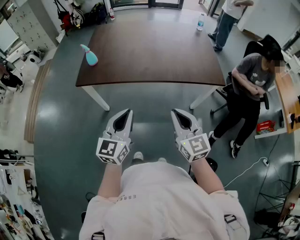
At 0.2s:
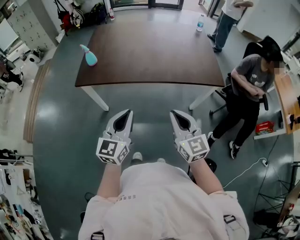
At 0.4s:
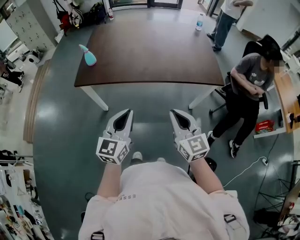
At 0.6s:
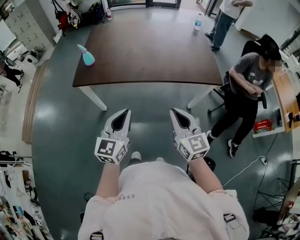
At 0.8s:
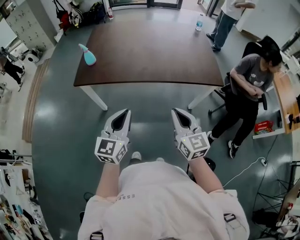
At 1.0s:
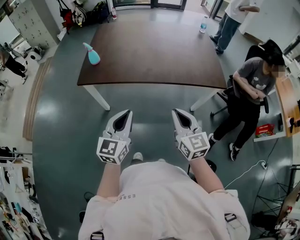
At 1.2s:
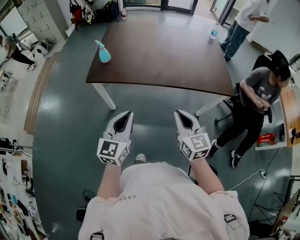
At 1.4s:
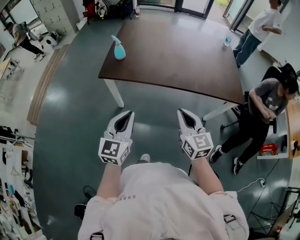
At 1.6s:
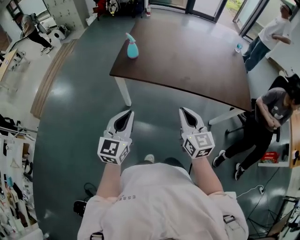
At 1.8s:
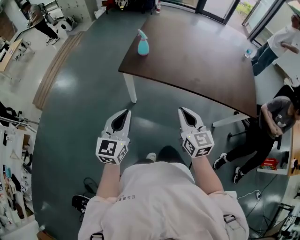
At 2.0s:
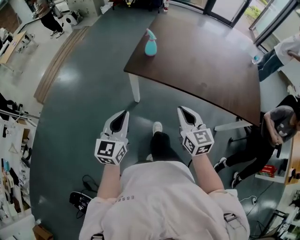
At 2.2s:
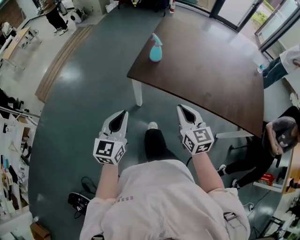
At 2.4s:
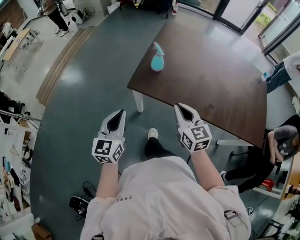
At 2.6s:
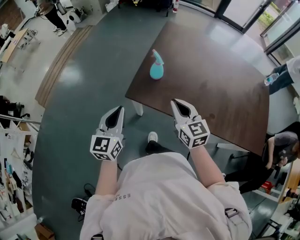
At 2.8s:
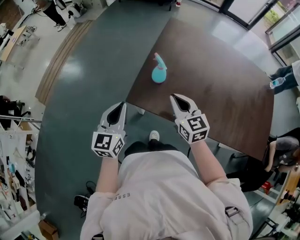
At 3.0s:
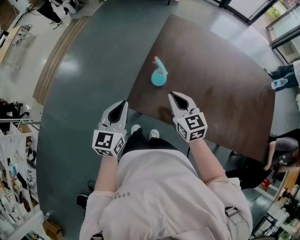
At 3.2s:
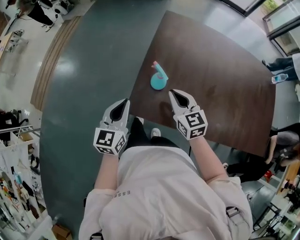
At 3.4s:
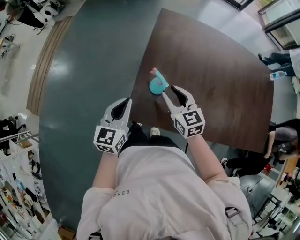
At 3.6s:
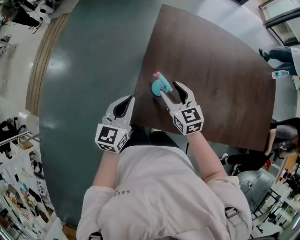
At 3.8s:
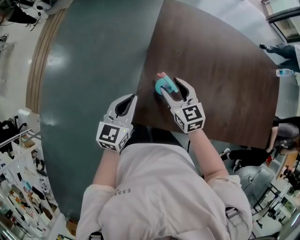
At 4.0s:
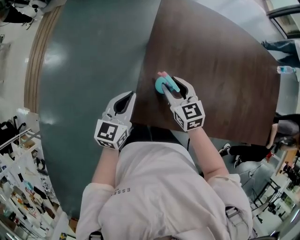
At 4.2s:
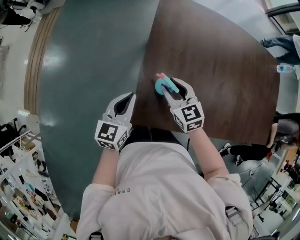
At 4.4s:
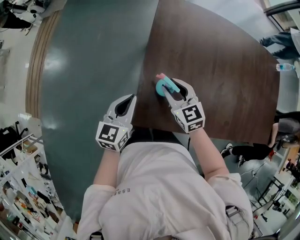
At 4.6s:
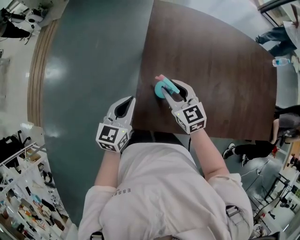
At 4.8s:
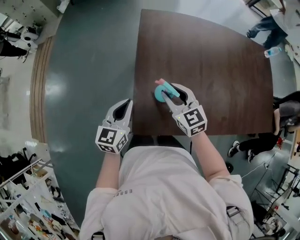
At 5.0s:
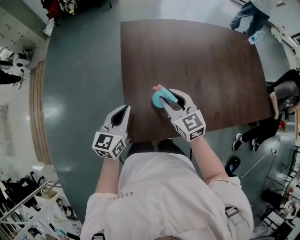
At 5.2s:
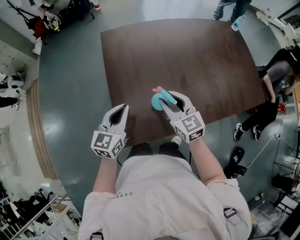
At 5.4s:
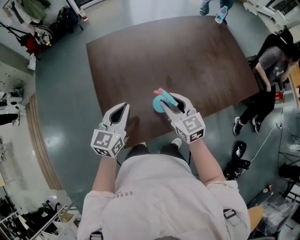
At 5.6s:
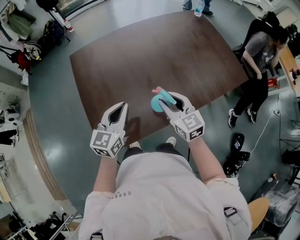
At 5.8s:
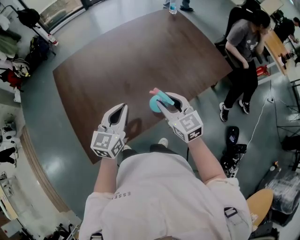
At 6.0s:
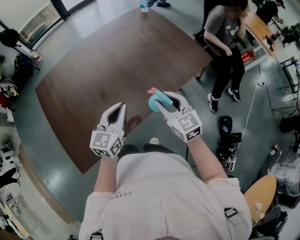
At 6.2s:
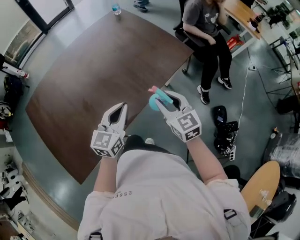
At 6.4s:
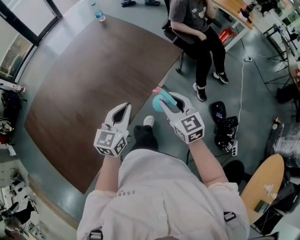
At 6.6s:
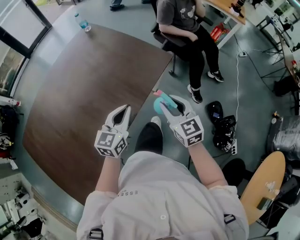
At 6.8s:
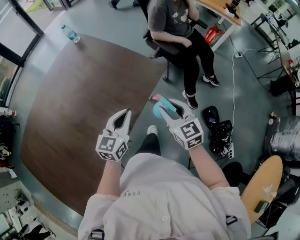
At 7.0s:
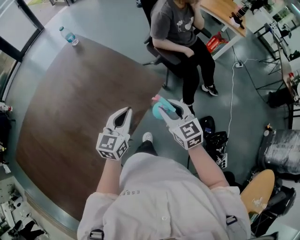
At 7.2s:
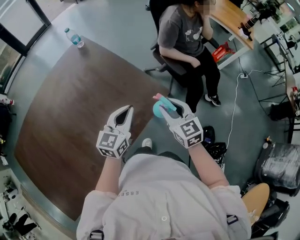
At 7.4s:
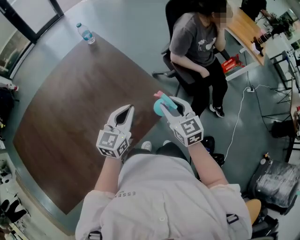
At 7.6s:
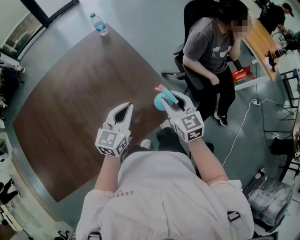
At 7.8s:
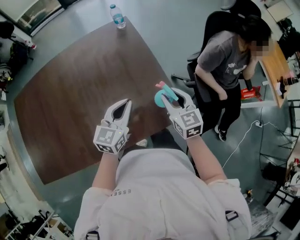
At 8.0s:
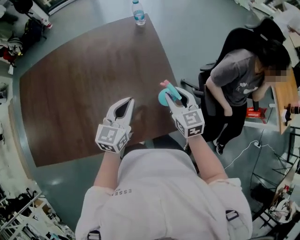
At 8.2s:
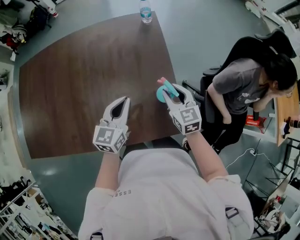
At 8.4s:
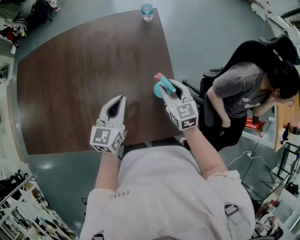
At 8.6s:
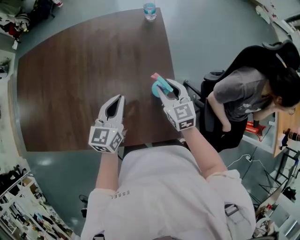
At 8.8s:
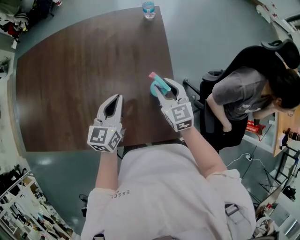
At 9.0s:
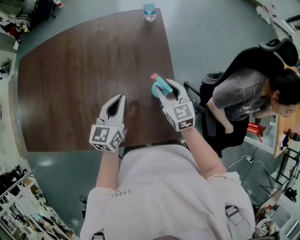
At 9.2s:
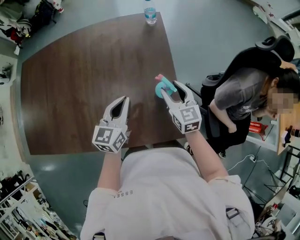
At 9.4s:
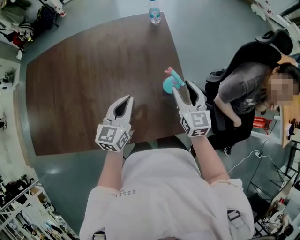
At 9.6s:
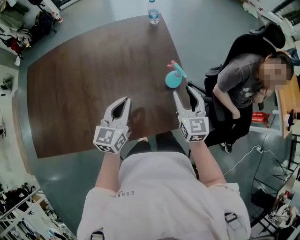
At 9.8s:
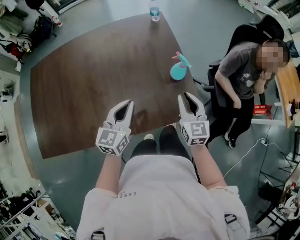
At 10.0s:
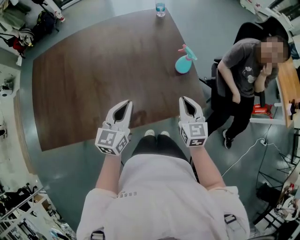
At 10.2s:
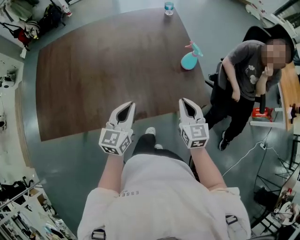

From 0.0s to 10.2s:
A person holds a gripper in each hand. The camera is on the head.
From 0.0s to 1.4s: The left gripper goes some 10 cm to the left, while the right gripper goes approximately 10 cm to the left and forward.
From 1.4s to 3.0s: Both grippers move forward and to the left, about 40 cm. The right gripper rotates roughly 20 degrees.
From 3.0s to 4.4s: Both grippers move forward and downward, approximately 15 cm. The left gripper changes its angle by some 20 degrees; the right gripper opens.
From 4.4s to 5.8s: The right gripper ends up approximately 40 cm from where it was, and changes its angle by about 40 degrees. The left gripper ends up some 35 cm from where it was, and swivels about 40 degrees.
From 5.8s to 7.2s: The pair of grippers is taken approximately 50 cm. The left gripper rotates roughly 20 degrees, while the right gripper changes its angle by about 20 degrees.
From 7.2s to 8.8s: The right gripper ends up some 30 cm from where it was, and changes its angle by roughly 40 degrees. The left gripper moves roughly 15 cm, and rotates roughly 50 degrees.
From 8.8s to 10.2s: The left gripper travels backward and to the left by some 25 cm, while the right gripper shifts roughly 25 cm backward, and closes its fingers.

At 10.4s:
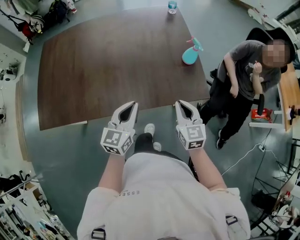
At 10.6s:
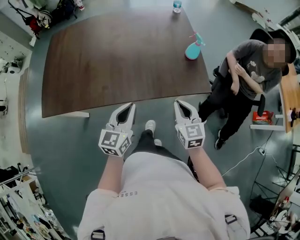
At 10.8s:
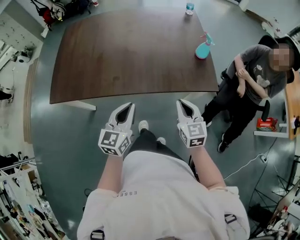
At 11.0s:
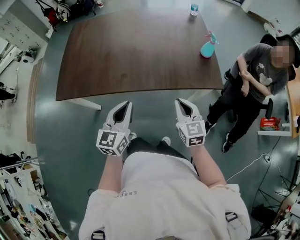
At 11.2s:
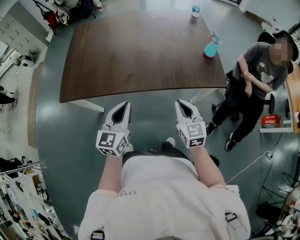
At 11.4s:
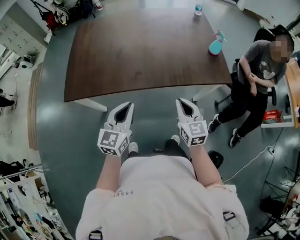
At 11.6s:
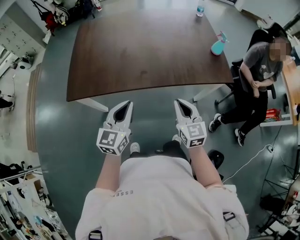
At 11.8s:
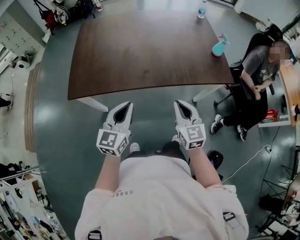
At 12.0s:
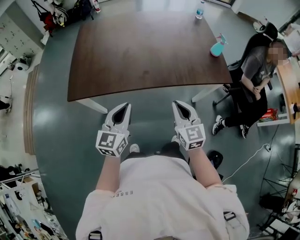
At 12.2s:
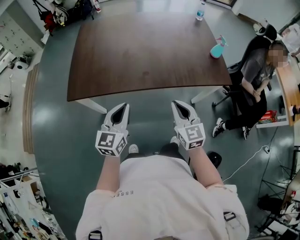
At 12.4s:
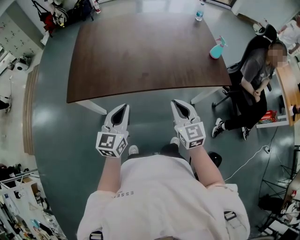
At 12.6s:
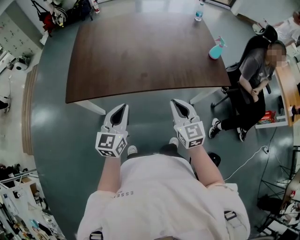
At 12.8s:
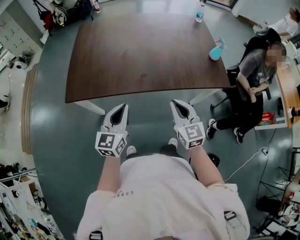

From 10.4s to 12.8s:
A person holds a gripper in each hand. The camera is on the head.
From 10.4s to 11.6s: The two grippers go approximately 25 cm to the left and backward.
From 11.6s to 12.8s: The grippers move only a little.

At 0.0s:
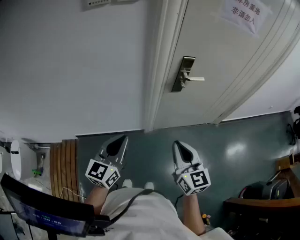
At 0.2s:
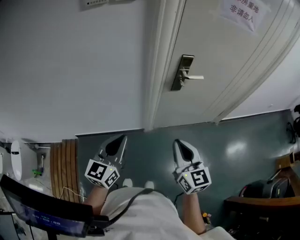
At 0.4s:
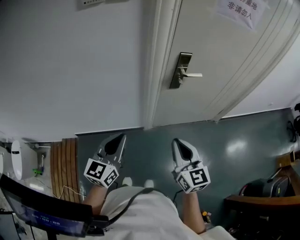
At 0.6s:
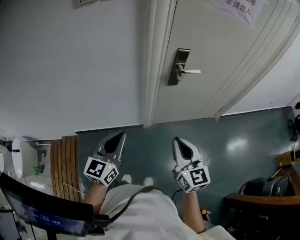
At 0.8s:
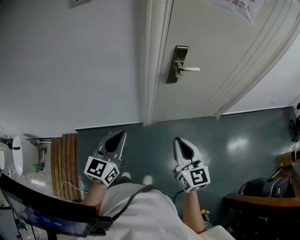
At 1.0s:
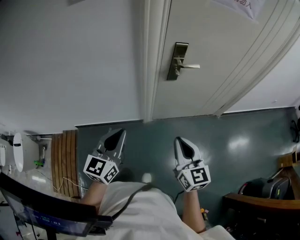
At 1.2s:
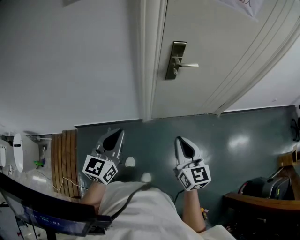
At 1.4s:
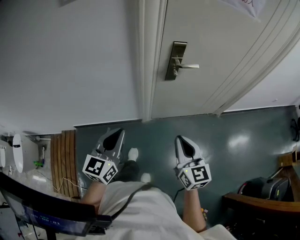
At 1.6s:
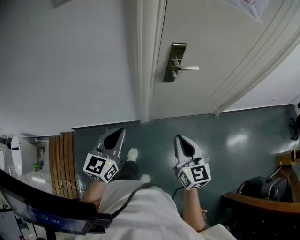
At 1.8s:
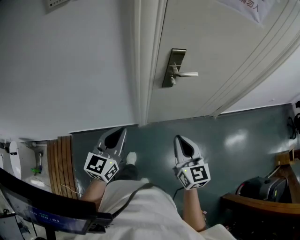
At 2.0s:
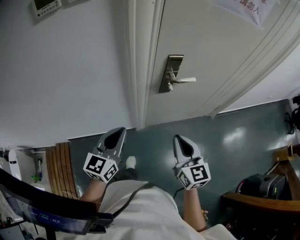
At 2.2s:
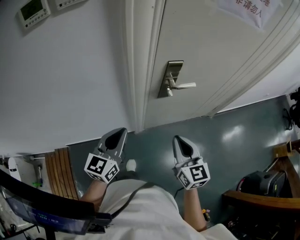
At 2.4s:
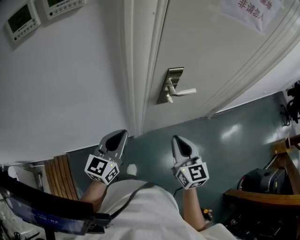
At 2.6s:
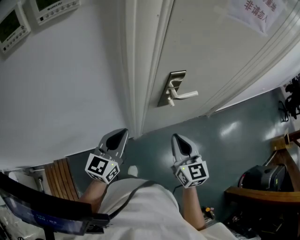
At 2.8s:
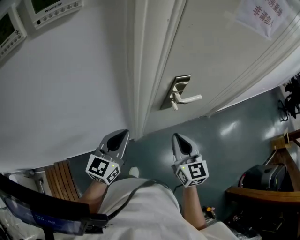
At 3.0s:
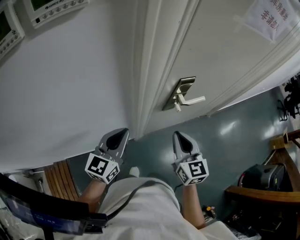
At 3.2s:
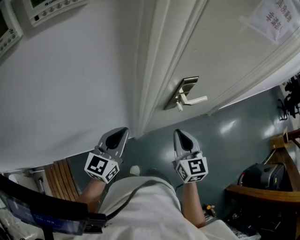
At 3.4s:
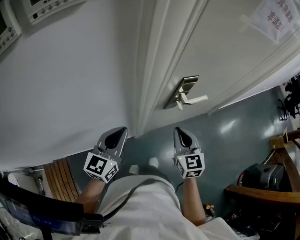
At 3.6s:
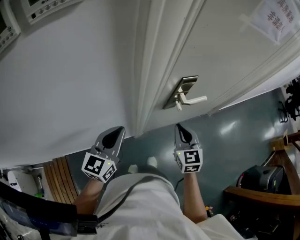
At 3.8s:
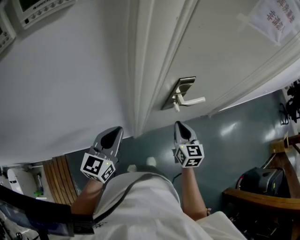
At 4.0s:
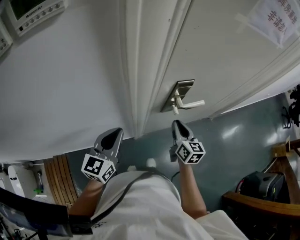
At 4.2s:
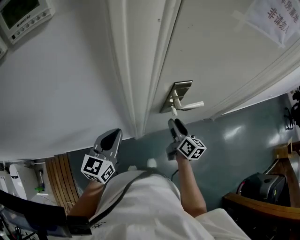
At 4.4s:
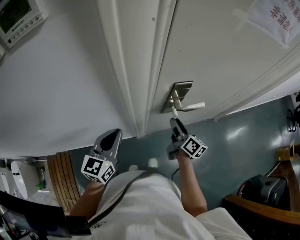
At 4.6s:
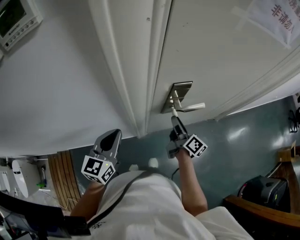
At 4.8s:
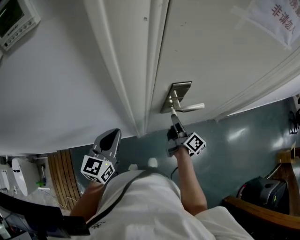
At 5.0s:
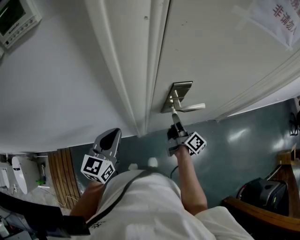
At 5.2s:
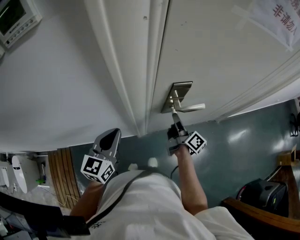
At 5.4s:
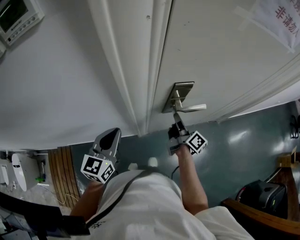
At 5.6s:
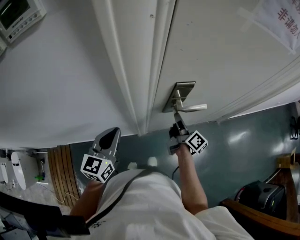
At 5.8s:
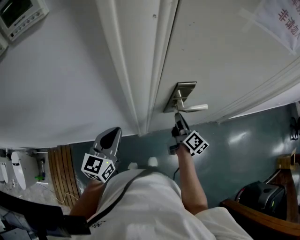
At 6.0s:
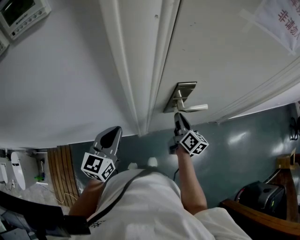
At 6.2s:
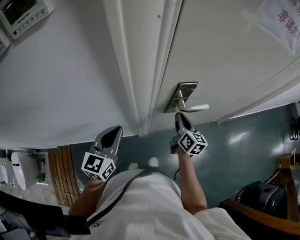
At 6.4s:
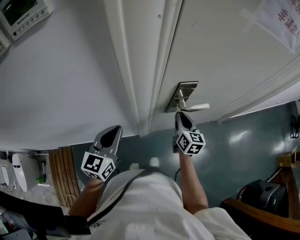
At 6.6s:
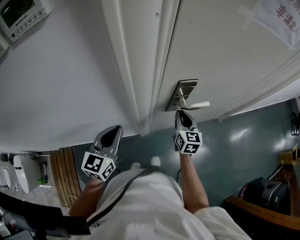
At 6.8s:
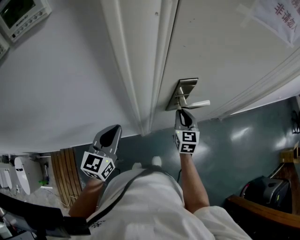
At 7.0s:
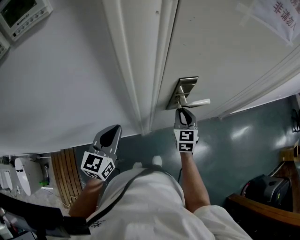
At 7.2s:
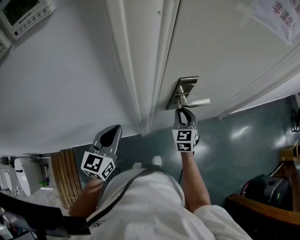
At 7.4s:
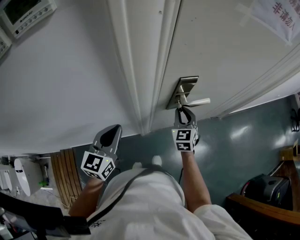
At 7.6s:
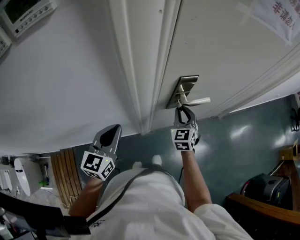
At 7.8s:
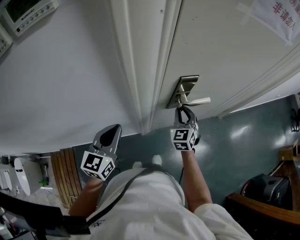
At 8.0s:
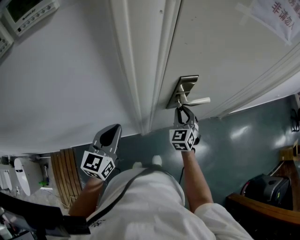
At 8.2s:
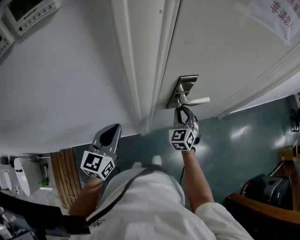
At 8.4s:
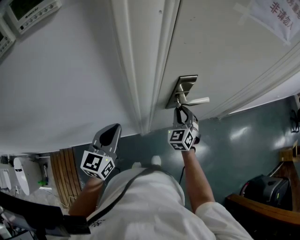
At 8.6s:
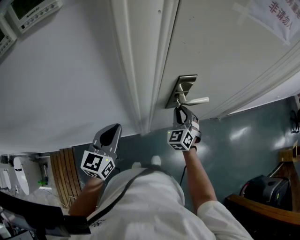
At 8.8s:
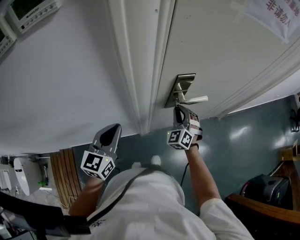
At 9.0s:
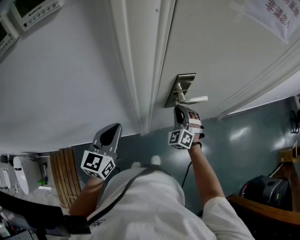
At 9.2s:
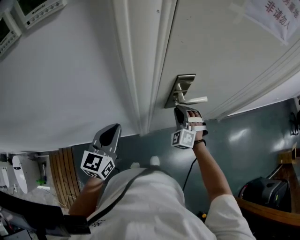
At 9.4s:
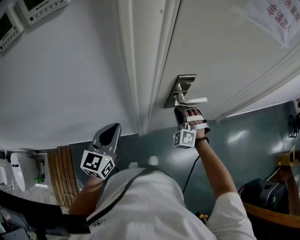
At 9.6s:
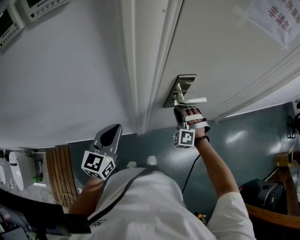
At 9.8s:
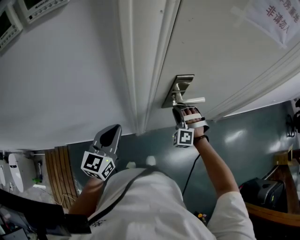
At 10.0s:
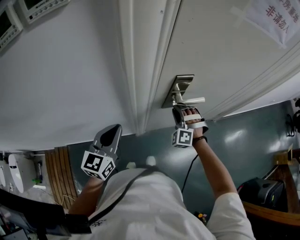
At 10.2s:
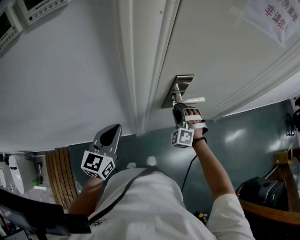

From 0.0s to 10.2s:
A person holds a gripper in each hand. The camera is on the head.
From 0.0s to 1.4s: Both grippers travel together to the right, about 5 cm.
From 1.4s to 3.0s: Both grippers move forward, about 25 cm.
From 3.0s to 4.4s: The right gripper goes about 20 cm forward, downward and to the right, rotates around the line of its fingers by approximately 50 degrees, clockwise from behind, and opens its fingers.
From 4.4s to 5.8s: The right gripper closes up.
From 5.8s to 7.2s: The right gripper twists some 70 degrees counterclockwise, seen from behind.
From 7.2s to 8.8s: The right gripper rotates roughly 30 degrees.
From 8.8s to 10.2s: The right gripper rotates approximately 30 degrees.

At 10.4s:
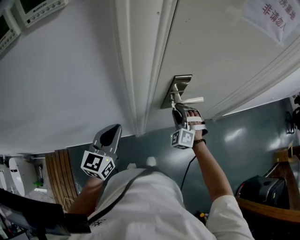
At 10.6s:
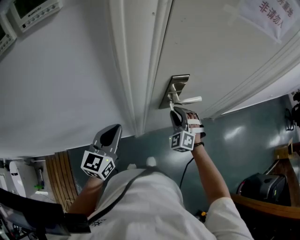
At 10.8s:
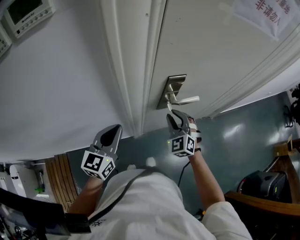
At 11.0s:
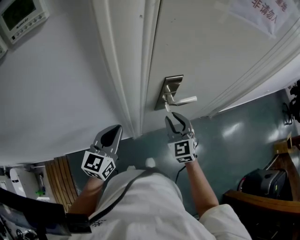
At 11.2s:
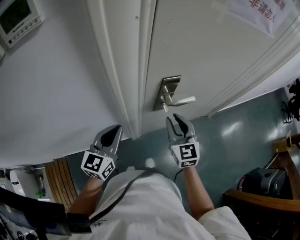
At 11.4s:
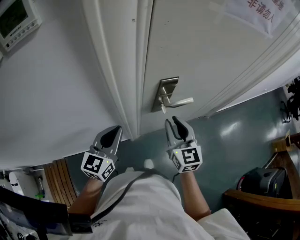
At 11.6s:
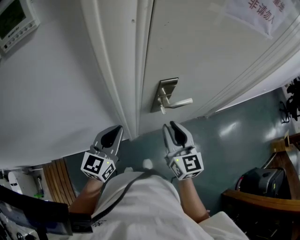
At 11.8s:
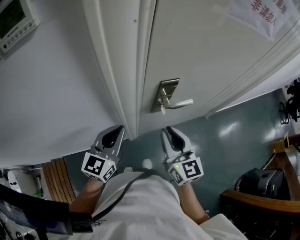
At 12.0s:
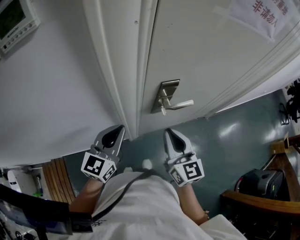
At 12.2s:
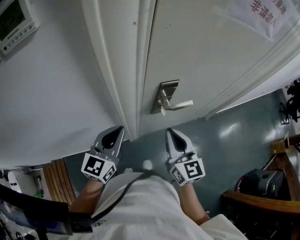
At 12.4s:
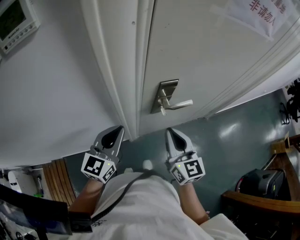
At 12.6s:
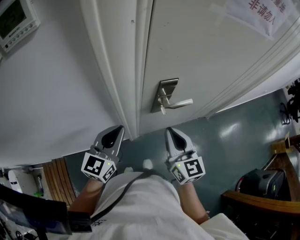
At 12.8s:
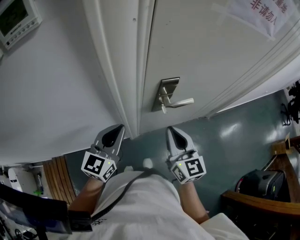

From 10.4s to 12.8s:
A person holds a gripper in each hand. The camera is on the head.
From 10.4s to 11.6s: The left gripper shifts by approximately 5 cm, while the right gripper heads upward and backward, covering approximately 15 cm, and rotates around the line of its fingers by approximately 70 degrees, clockwise from behind.
From 11.6s to 12.8s: The right gripper closes.
